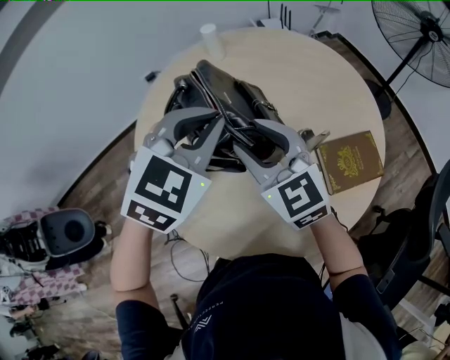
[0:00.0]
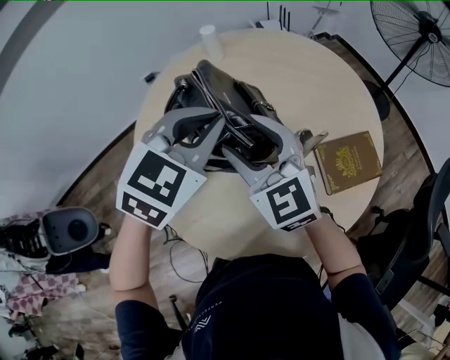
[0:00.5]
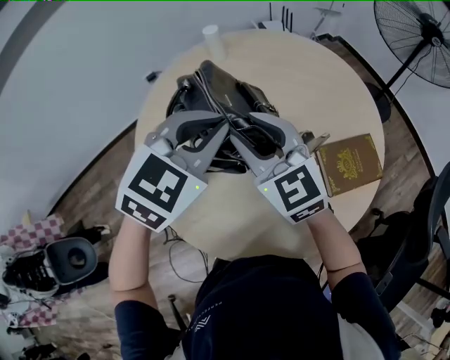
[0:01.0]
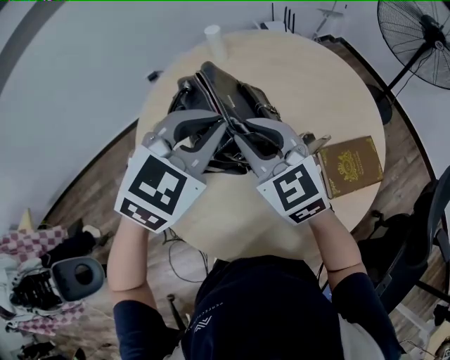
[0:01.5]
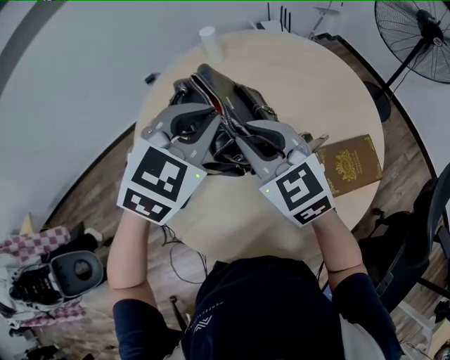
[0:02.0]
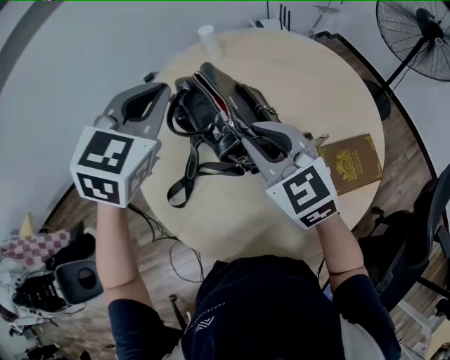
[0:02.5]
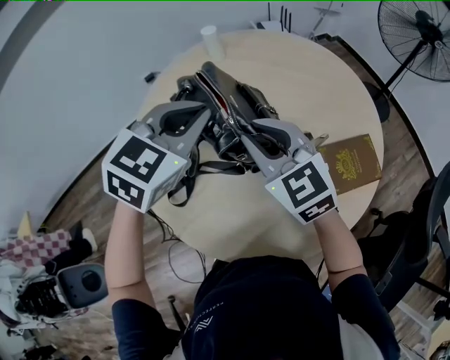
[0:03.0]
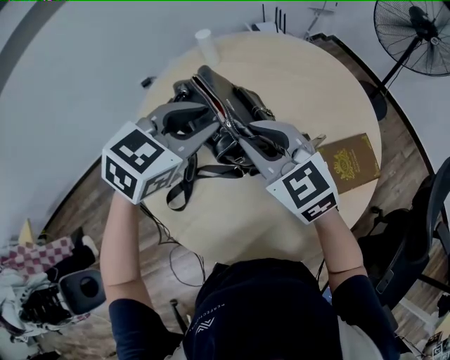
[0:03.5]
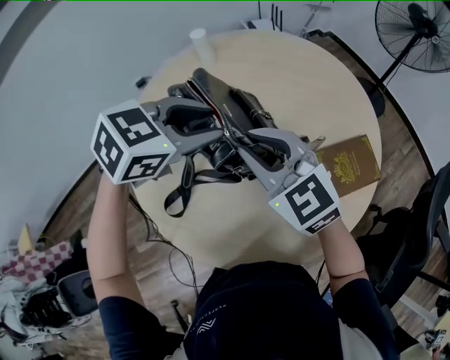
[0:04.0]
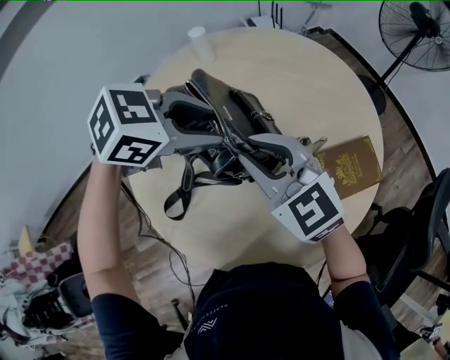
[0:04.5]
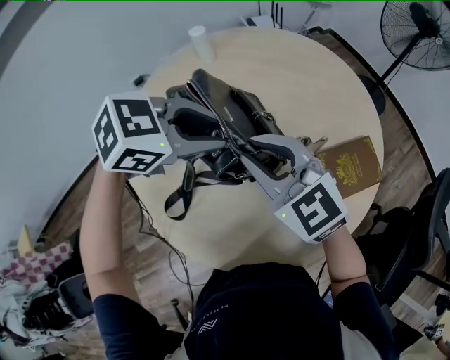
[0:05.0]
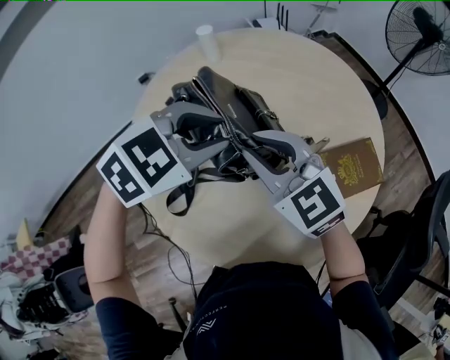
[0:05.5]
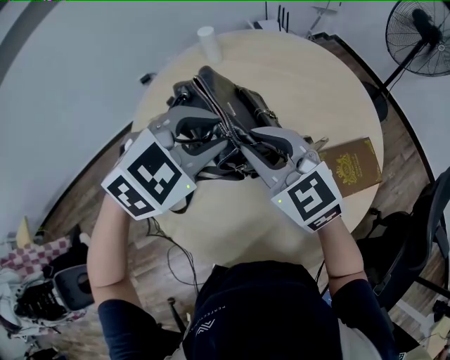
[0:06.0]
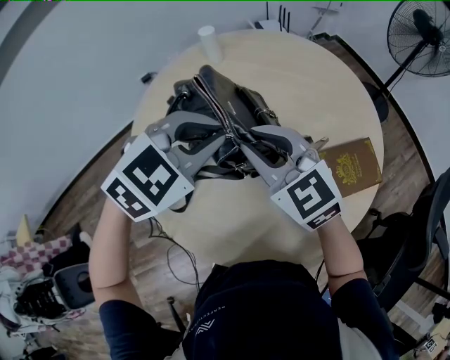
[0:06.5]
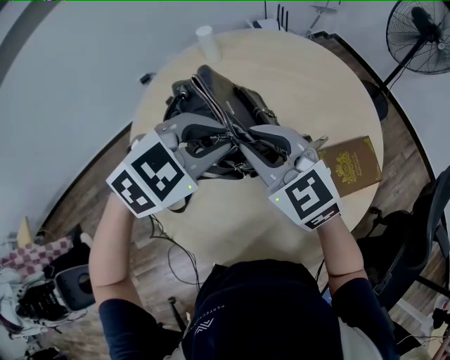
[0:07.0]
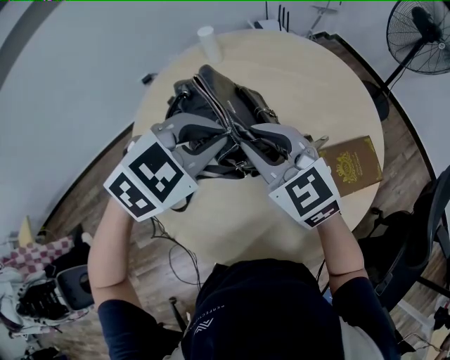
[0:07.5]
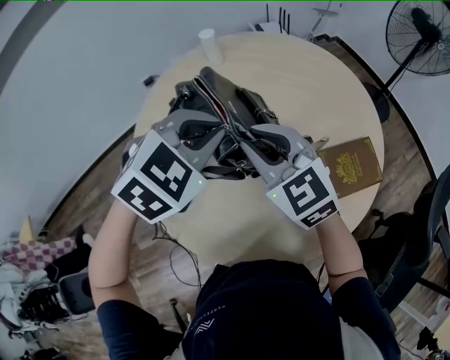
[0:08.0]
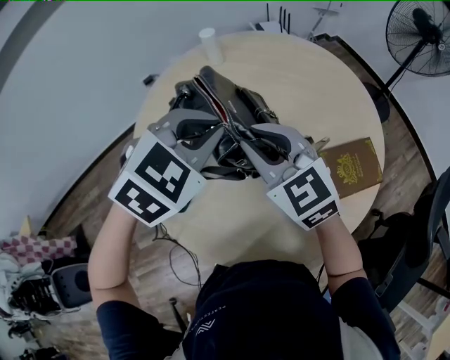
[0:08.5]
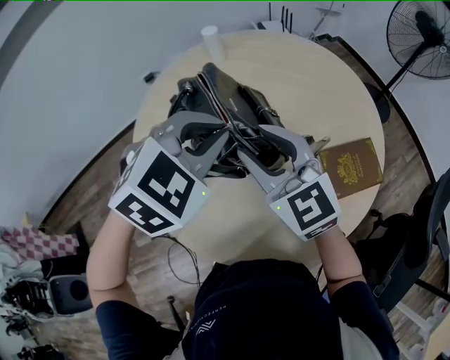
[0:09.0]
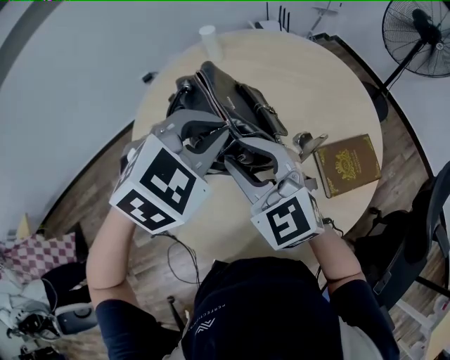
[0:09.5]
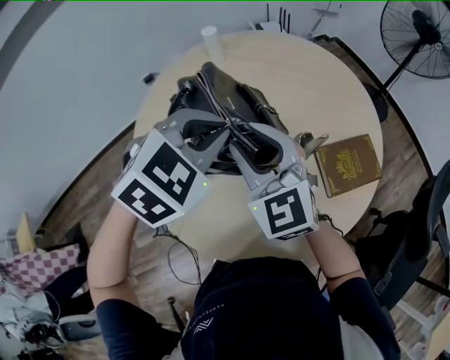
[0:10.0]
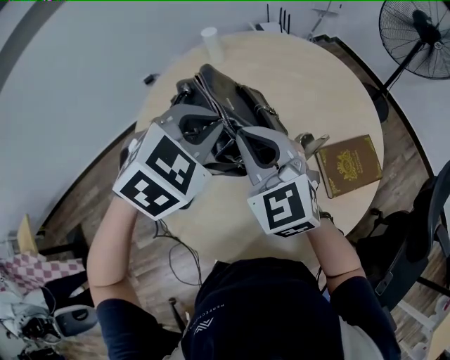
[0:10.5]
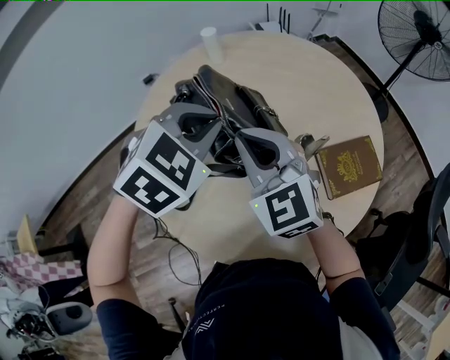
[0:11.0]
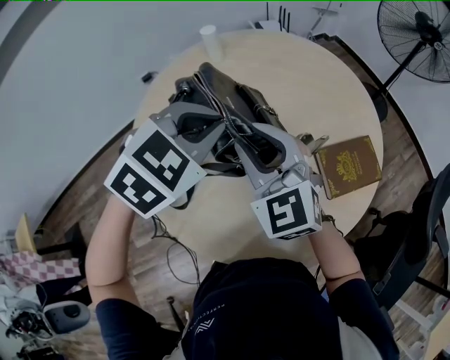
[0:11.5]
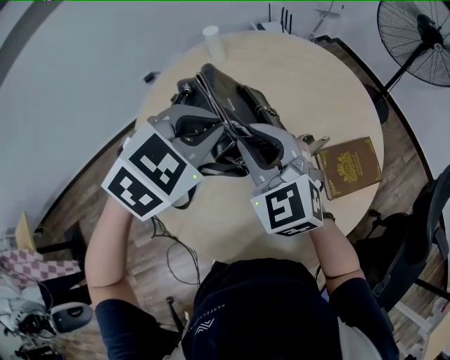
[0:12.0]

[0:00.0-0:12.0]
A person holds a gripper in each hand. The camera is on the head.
0:00.0 to 0:02.0: The right gripper closes up.
0:02.0 to 0:04.0: The left gripper reaches some 10 cm to the left, then returns, turns by approximately 30 degrees, and opens.
0:04.0 to 0:06.0: The left gripper changes its angle by some 20 degrees.
0:06.0 to 0:08.0: The left gripper closes up.
0:08.0 to 0:10.0: The grippers stay close to where they were, moving slightly.
0:10.0 to 0:12.0: The right gripper closes, then reopens.

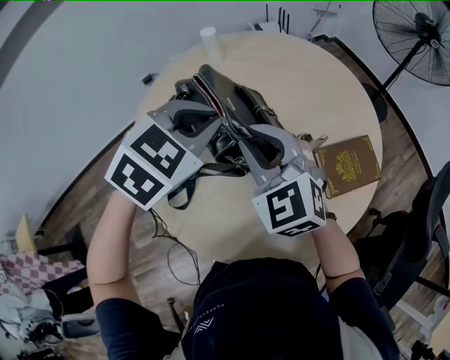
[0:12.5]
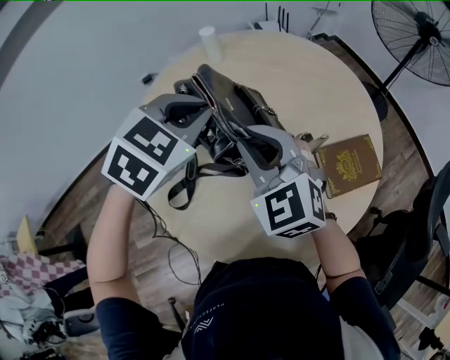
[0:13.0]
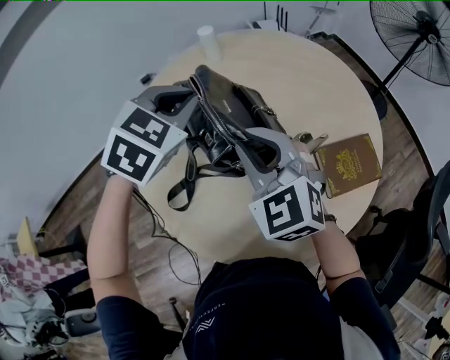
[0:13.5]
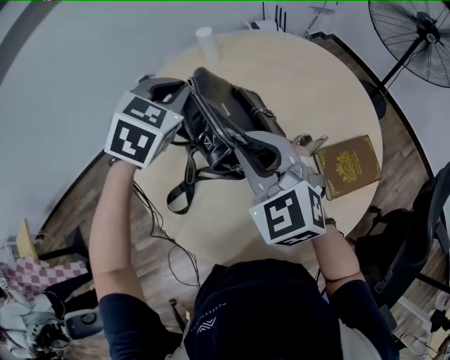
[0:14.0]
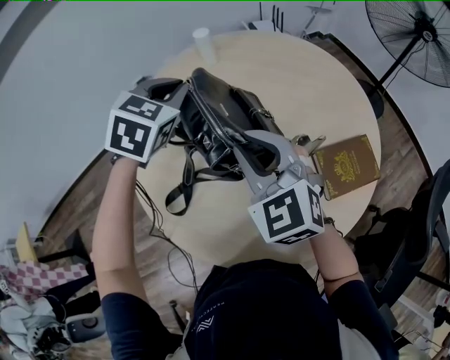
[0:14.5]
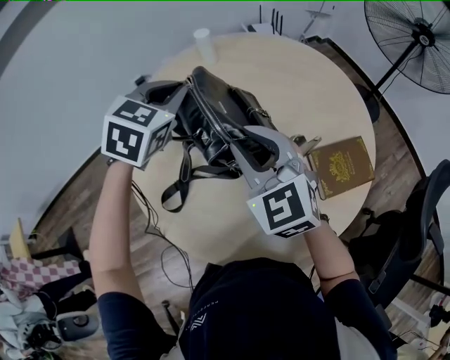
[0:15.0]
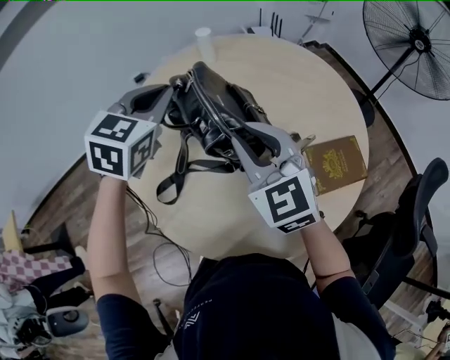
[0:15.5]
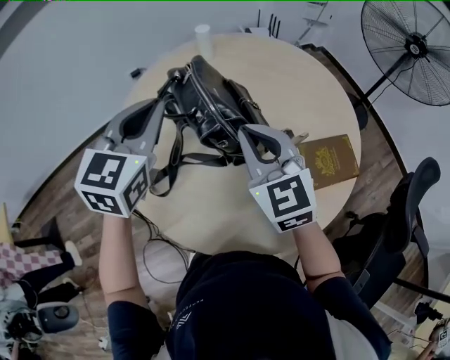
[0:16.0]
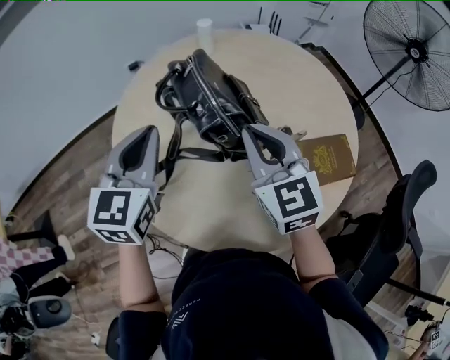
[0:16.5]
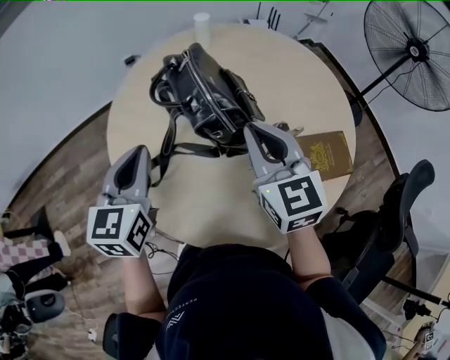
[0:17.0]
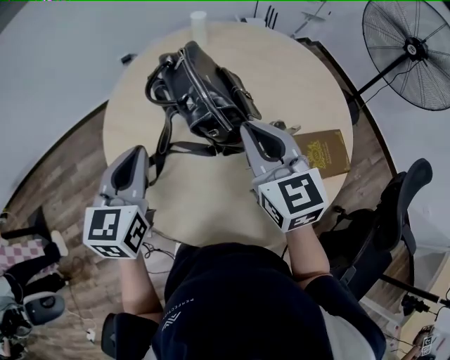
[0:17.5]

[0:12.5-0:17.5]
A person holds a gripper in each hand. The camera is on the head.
0:12.5 to 0:15.0: The left gripper travels forward and to the left by roughly 10 cm.
0:15.0 to 0:17.5: The right gripper ends up roughly 5 cm from where it was, and closes up; the left gripper is displaced backward and to the left by about 20 cm, and changes its angle by roughly 40 degrees.

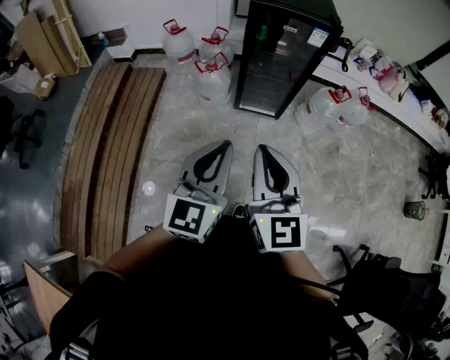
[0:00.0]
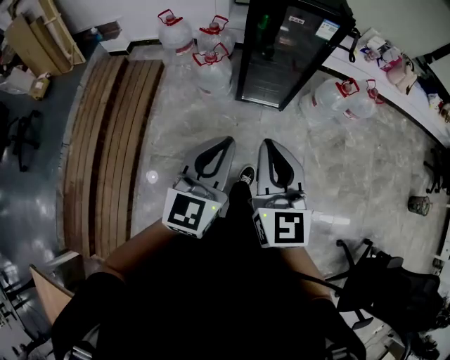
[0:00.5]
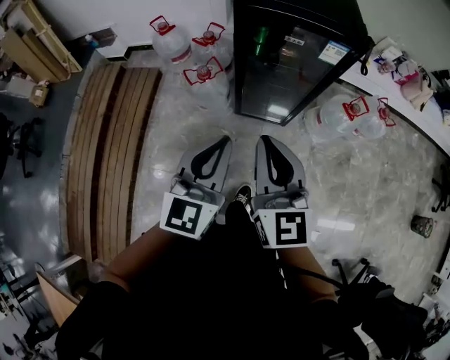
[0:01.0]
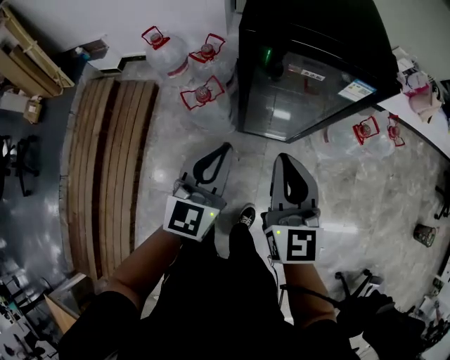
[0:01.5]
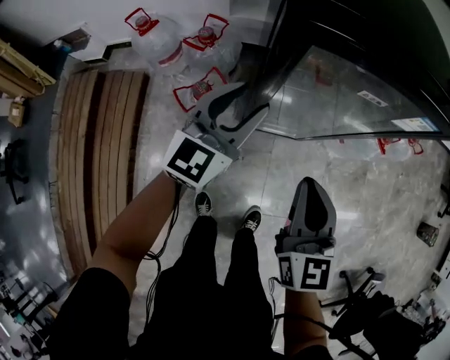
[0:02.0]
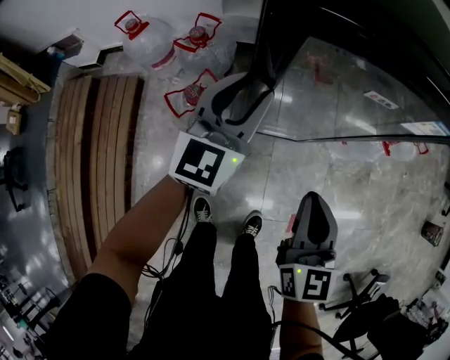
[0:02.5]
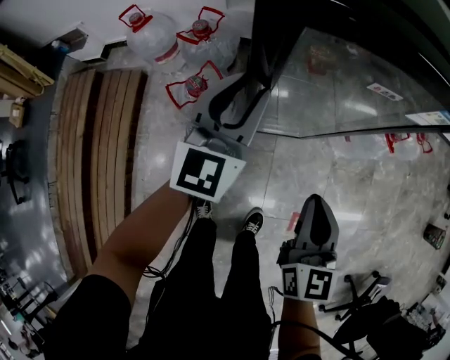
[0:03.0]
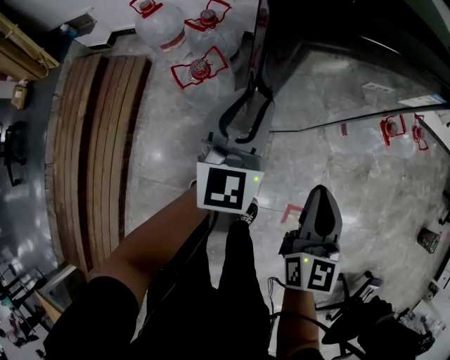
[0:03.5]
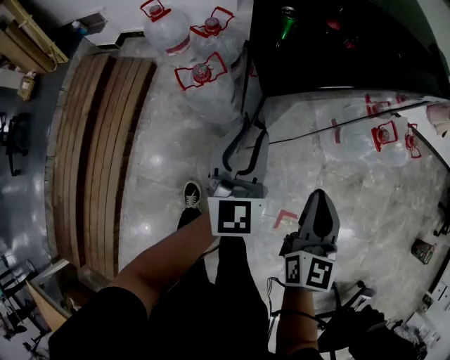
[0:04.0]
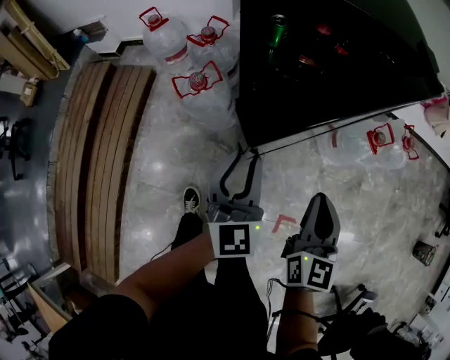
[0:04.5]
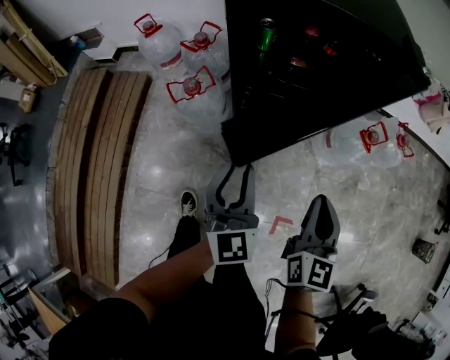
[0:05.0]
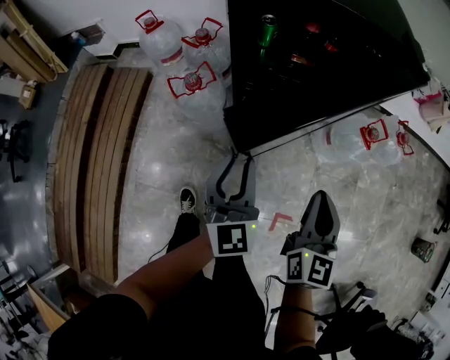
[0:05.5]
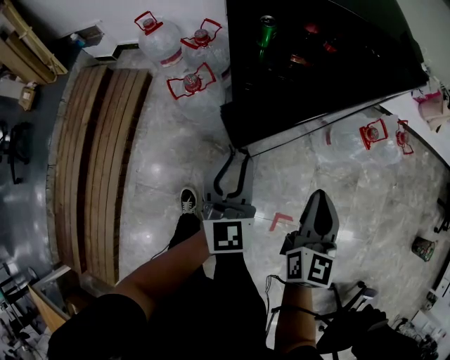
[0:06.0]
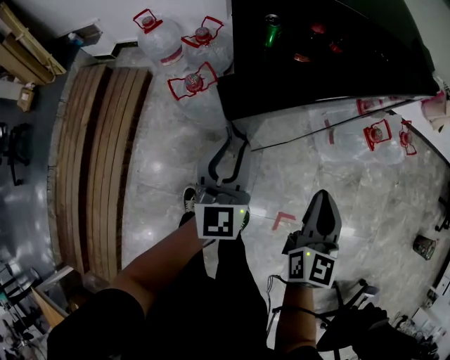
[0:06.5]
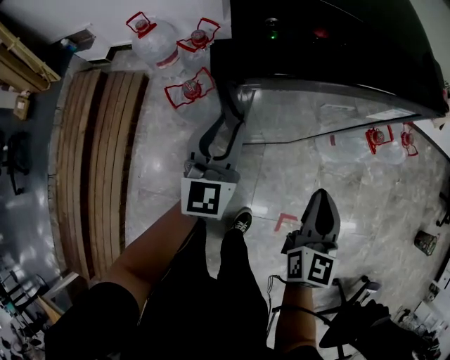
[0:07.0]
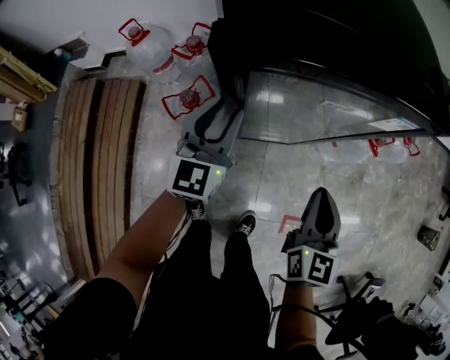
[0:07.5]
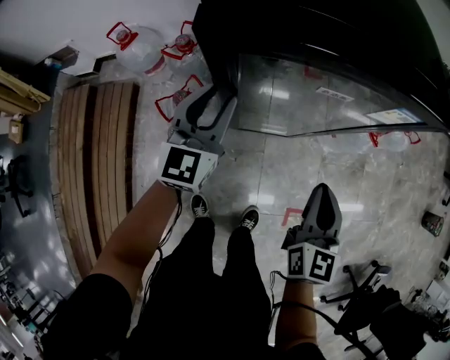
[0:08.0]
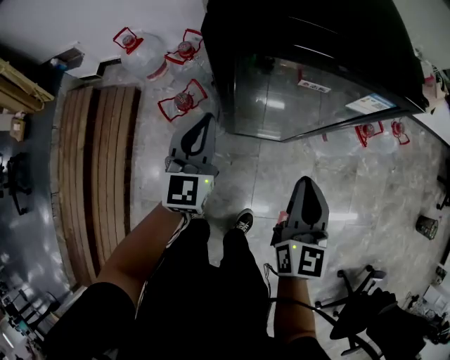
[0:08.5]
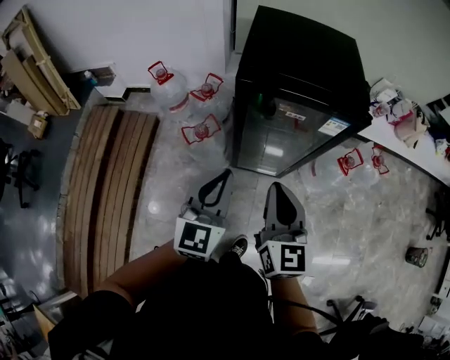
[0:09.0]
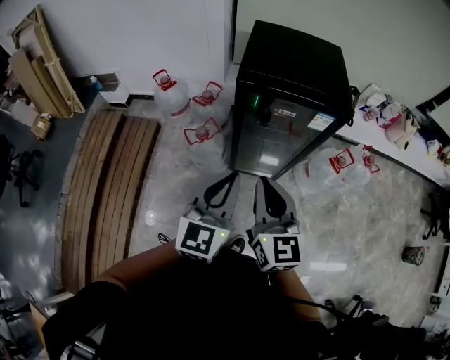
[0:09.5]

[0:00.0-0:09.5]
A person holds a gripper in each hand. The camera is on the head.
0:00.0 to 0:02.0: Both grippers are carried forward, about 60 cm. Both grippers move downward, some 25 cm. The left gripper opens.
0:02.0 to 0:04.0: The left gripper is displaced backward and to the right by about 15 cm, and turns by about 30 degrees; the right gripper is displaced to the right and backward by approximately 15 cm.
0:04.0 to 0:05.5: The left gripper goes about 5 cm backward. The right gripper heads to the right, covering roughly 5 cm.
0:05.5 to 0:07.5: The left gripper is displaced forward and to the left by some 20 cm, and turns by some 20 degrees, while the right gripper travels forward by some 10 cm.
0:07.5 to 0:09.5: The left gripper goes about 35 cm upward and backward, and closes; the right gripper travels upward, backward and to the left by roughly 30 cm, and turns by approximately 30 degrees.
